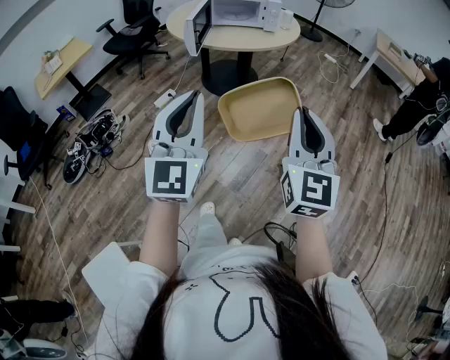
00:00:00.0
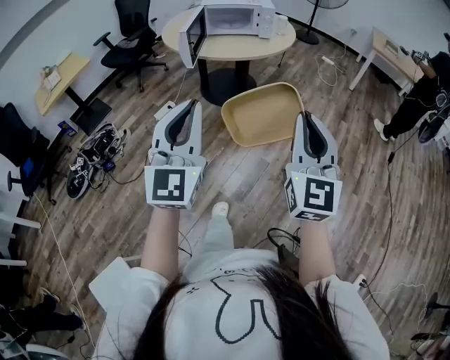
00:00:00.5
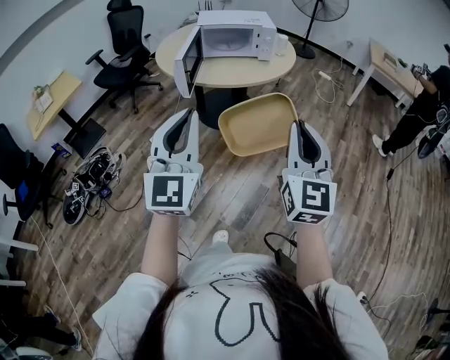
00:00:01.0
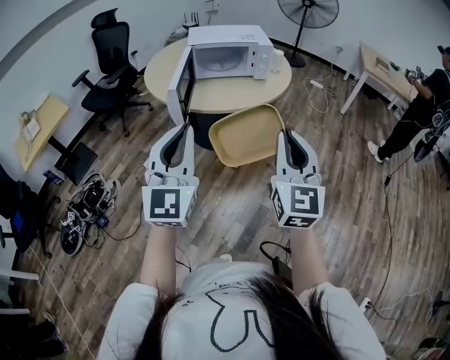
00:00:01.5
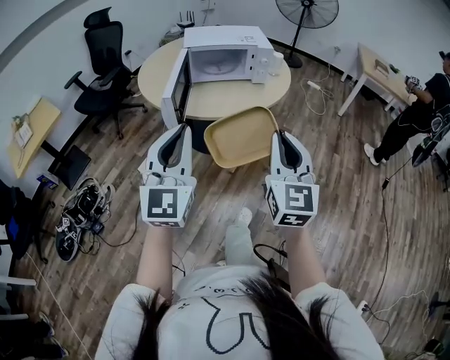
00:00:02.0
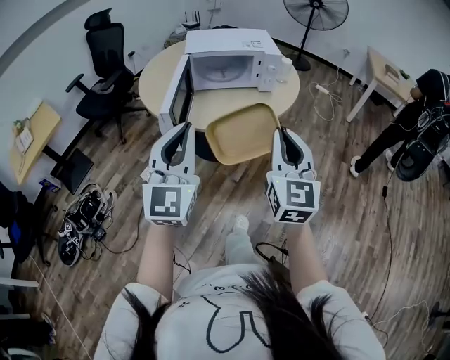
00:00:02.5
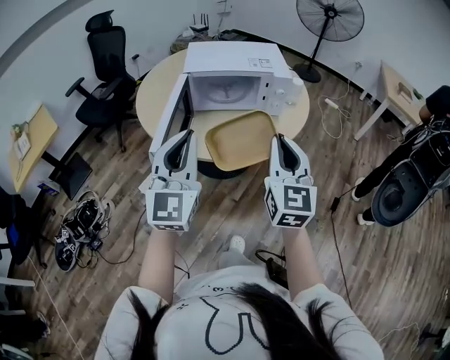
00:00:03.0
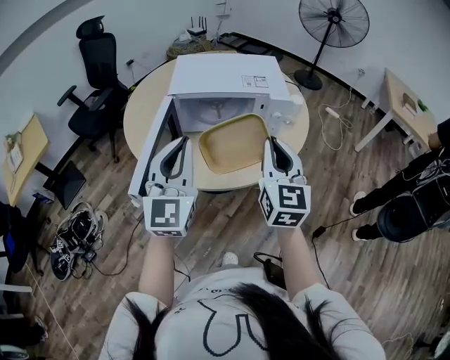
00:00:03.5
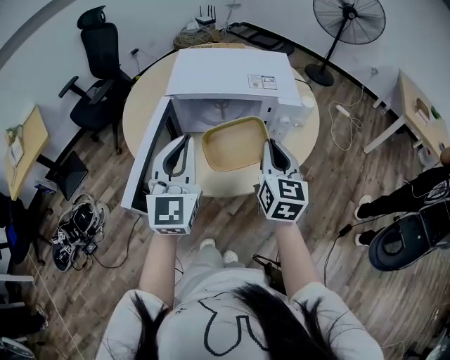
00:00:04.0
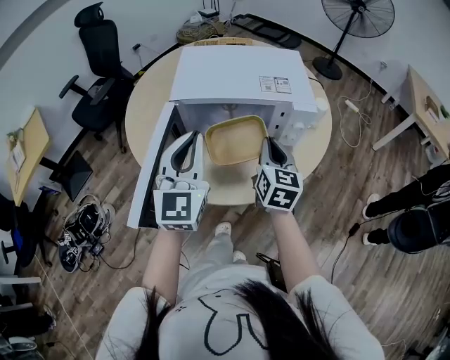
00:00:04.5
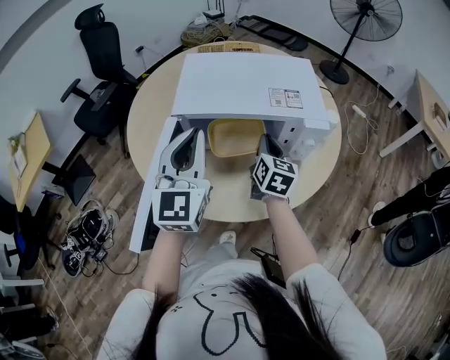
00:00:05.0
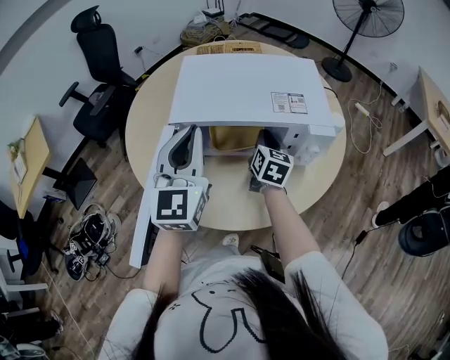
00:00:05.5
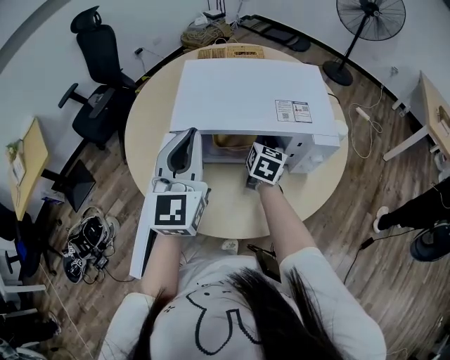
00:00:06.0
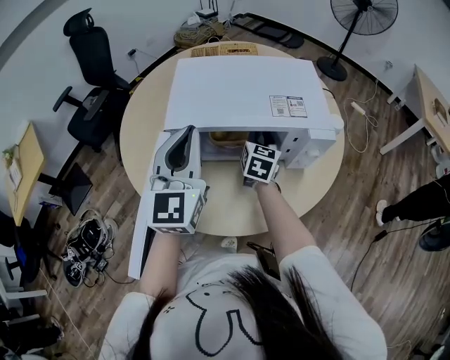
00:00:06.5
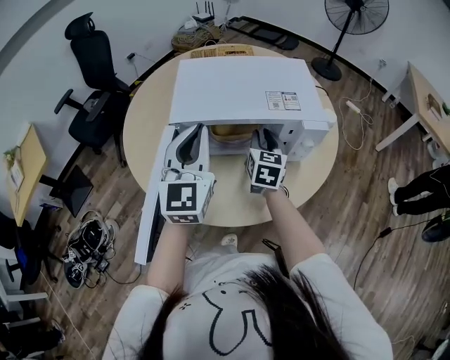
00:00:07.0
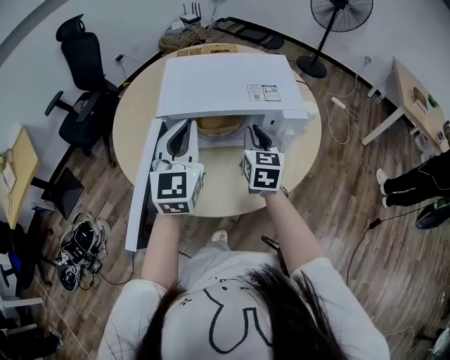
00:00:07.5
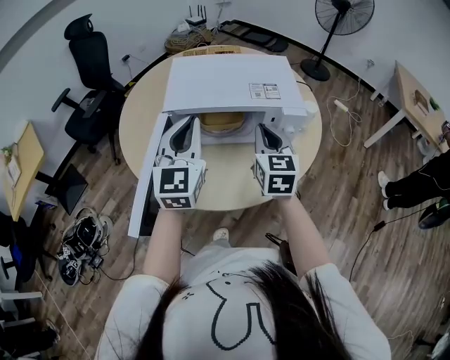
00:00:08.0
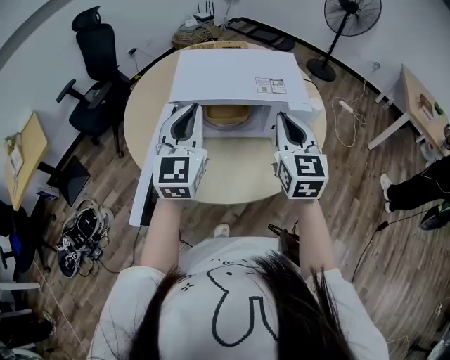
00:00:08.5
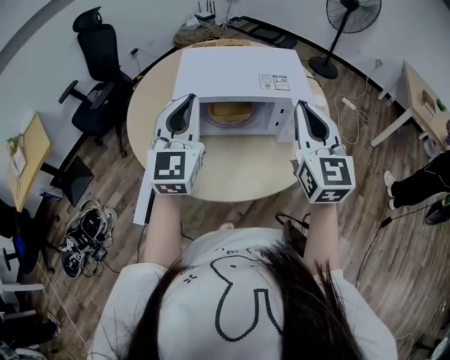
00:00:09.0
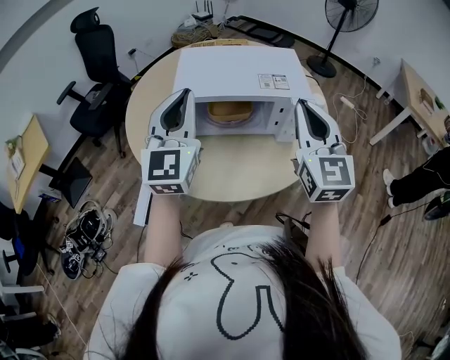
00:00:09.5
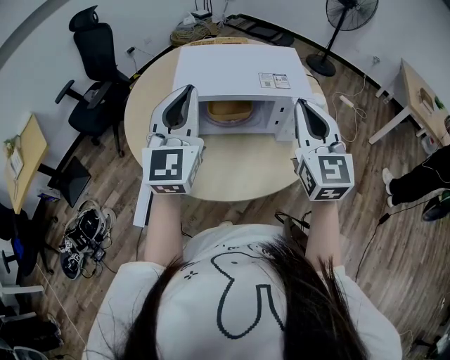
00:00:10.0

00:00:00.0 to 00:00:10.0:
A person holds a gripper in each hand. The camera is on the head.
00:00:00.0 to 00:00:02.0: The grippers both shift forward by approximately 35 cm.
00:00:02.0 to 00:00:04.0: The pair of grippers is taken forward, some 40 cm. The right gripper changes its angle by approximately 20 degrees.
00:00:04.0 to 00:00:06.0: The left gripper heads forward, covering some 20 cm; the right gripper goes some 30 cm forward and downward, and rotates approximately 20 degrees.
00:00:06.0 to 00:00:08.0: The right gripper goes roughly 20 cm backward and upward, and changes its angle by approximately 20 degrees; the left gripper heads backward, covering roughly 5 cm.
00:00:08.0 to 00:00:10.0: The left gripper heads upward, covering approximately 5 cm; the right gripper is displaced upward and backward by approximately 15 cm, and changes its angle by approximately 20 degrees.

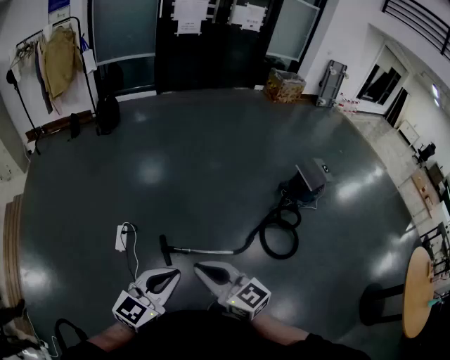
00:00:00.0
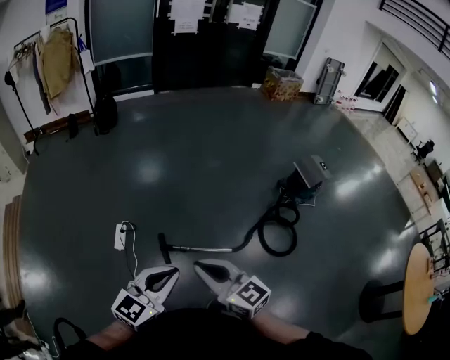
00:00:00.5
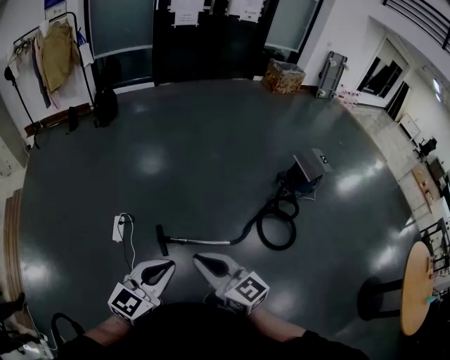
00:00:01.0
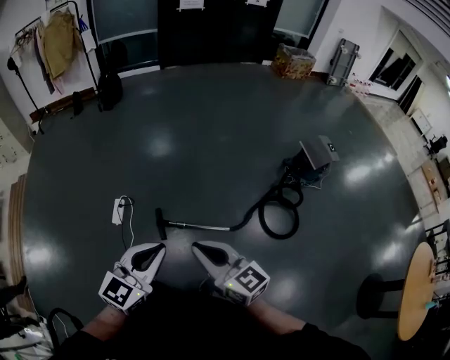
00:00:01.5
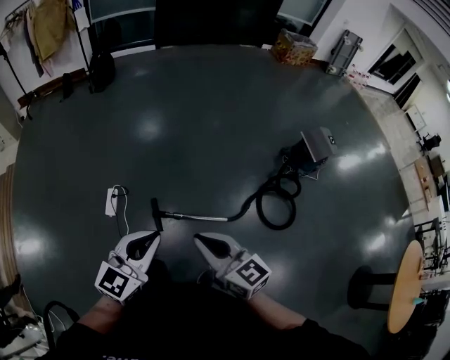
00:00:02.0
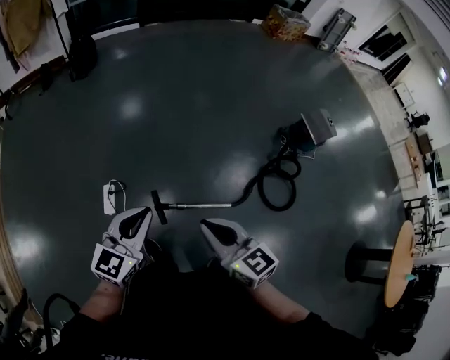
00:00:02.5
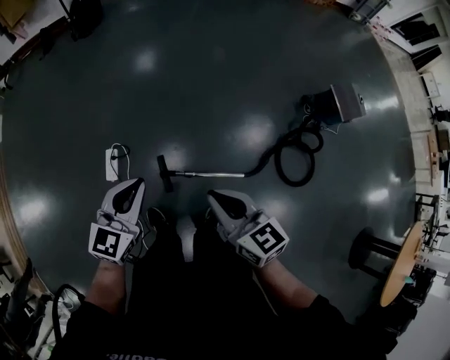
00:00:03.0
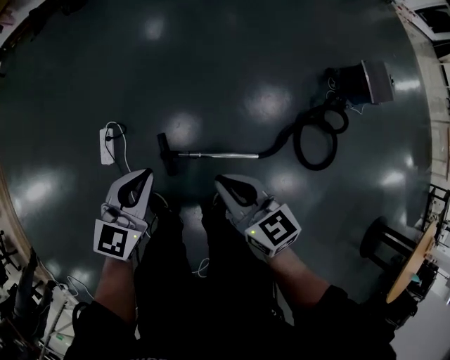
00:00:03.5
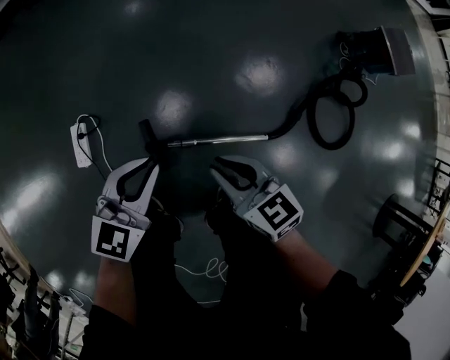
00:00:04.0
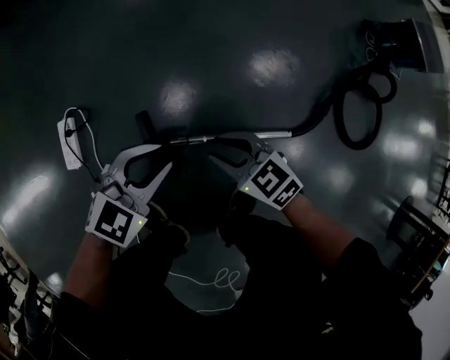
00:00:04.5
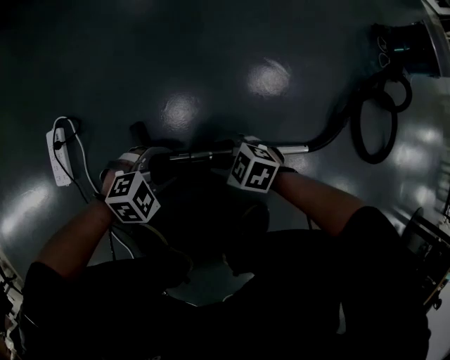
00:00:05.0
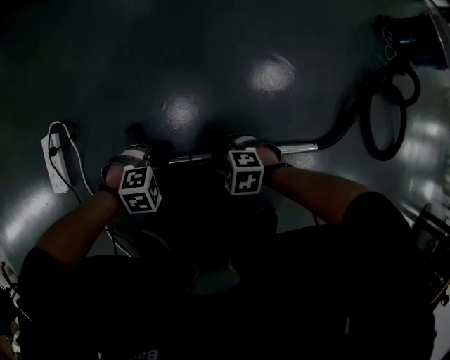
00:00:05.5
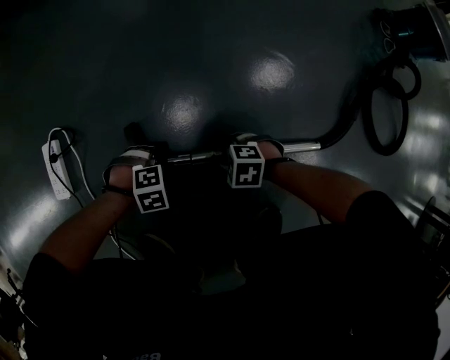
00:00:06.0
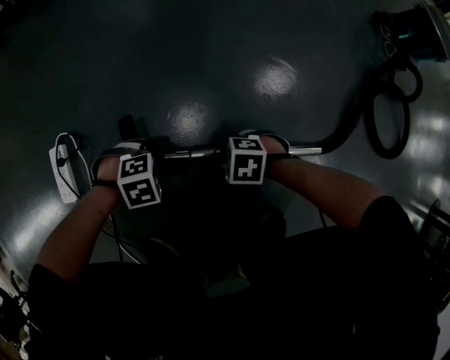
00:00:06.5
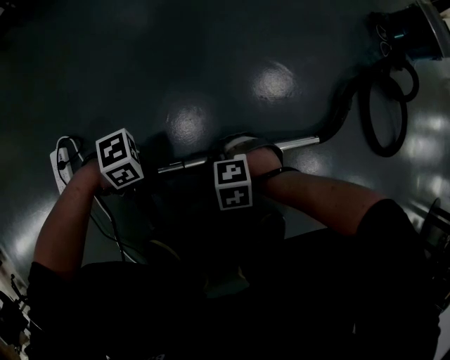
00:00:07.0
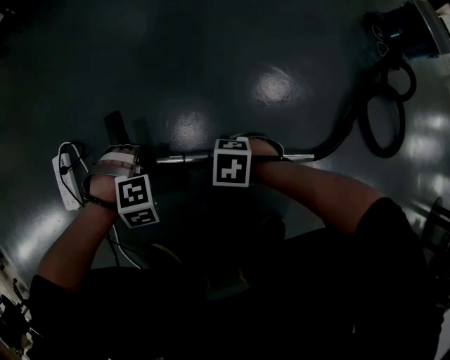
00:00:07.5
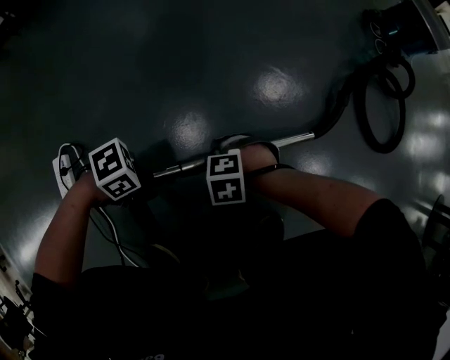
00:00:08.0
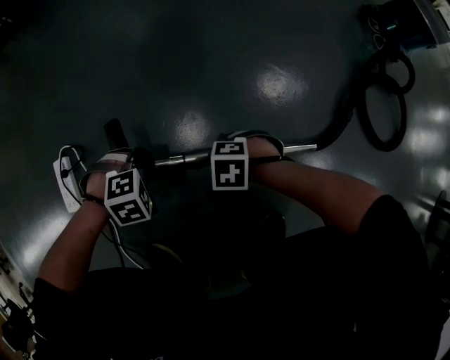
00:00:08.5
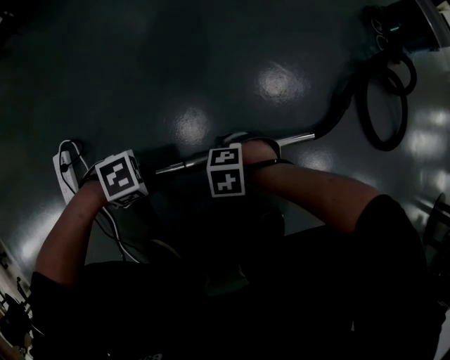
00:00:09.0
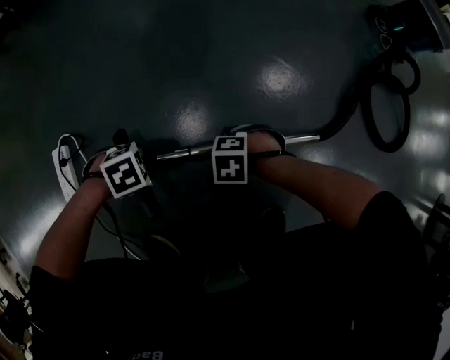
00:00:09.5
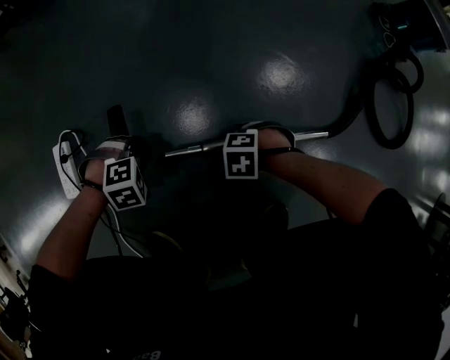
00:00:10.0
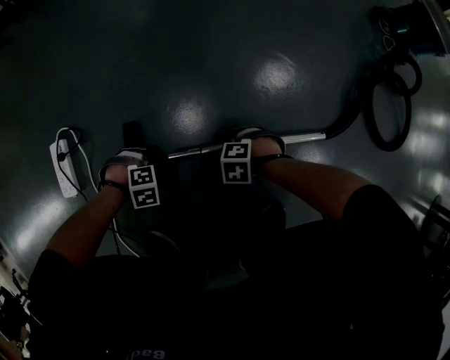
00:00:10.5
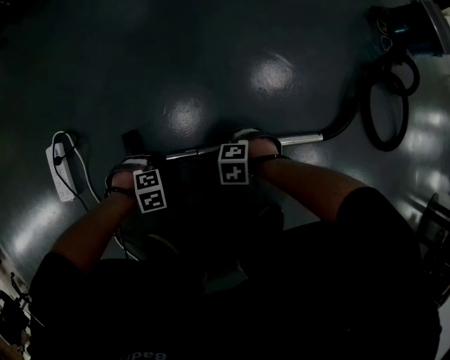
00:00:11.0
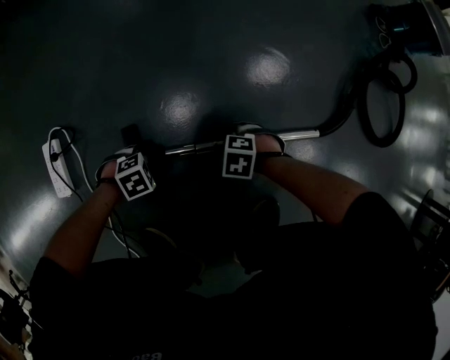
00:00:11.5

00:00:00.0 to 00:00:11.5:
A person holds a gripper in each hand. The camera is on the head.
00:00:00.0 to 00:00:02.0: The right gripper ends up about 5 cm from where it was, while the left gripper shifts roughly 5 cm forward.
00:00:02.0 to 00:00:04.0: Both grippers move downward and forward, approximately 50 cm. The right gripper rotates roughly 20 degrees.
00:00:04.0 to 00:00:06.0: Both grippers move downward, roughly 50 cm. The right gripper angles its fingers downward, by some 30 degrees; the left gripper tips its fingers downward by about 60 degrees, and opens its fingers.
00:00:06.0 to 00:00:07.5: The two grippers go some 10 cm upward.
00:00:07.5 to 00:00:09.5: The left gripper rotates about 40 degrees.
00:00:09.5 to 00:00:11.5: The right gripper opens. Meanwhile the left gripper goes roughly 10 cm downward, and opens up.

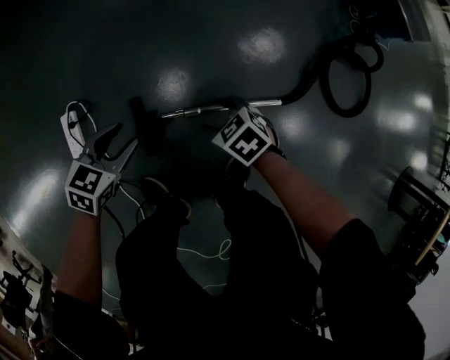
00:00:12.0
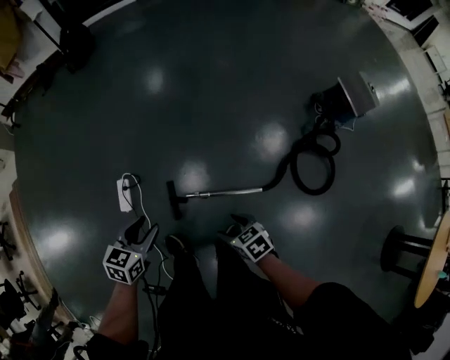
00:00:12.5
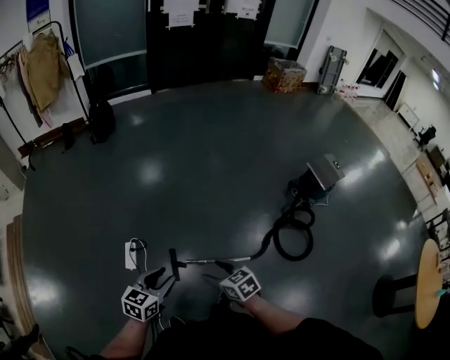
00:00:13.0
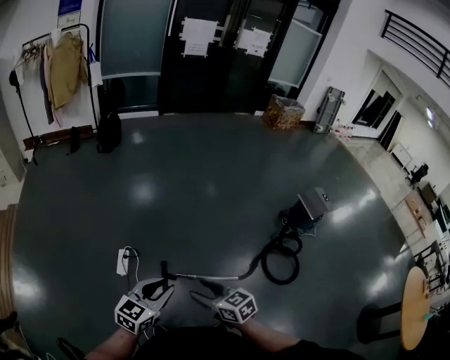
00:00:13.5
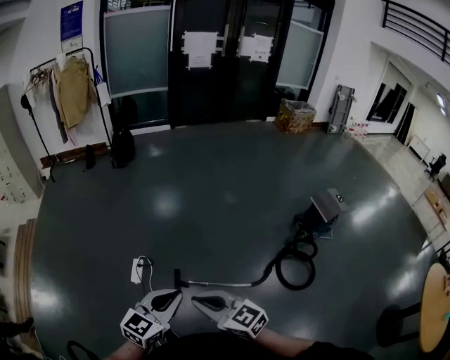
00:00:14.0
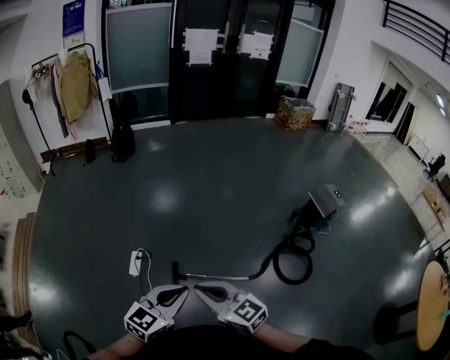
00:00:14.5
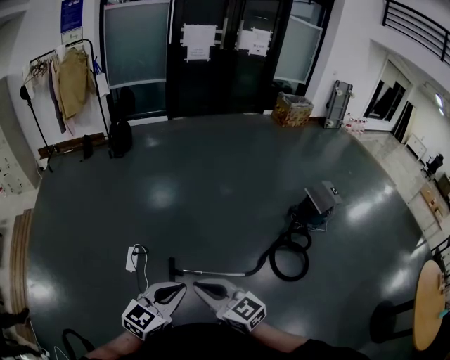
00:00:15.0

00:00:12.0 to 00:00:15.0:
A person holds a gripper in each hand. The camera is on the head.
00:00:12.0 to 00:00:13.5: The left gripper heads upward and backward, covering some 60 cm, tilts its fingers roughly 30 degrees upward, and closes. Meanwhile the right gripper goes some 60 cm upward, and points its fingers approximately 30 degrees further upward.
00:00:13.5 to 00:00:15.0: The left gripper is displaced to the right, backward and upward by about 15 cm, and closes; the right gripper shifts about 15 cm upward and backward, rotates approximately 20 degrees, and closes.

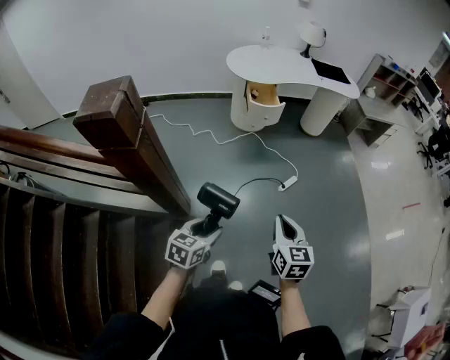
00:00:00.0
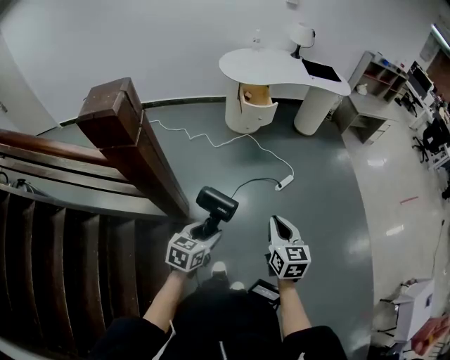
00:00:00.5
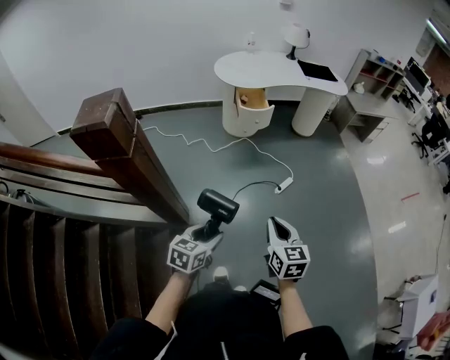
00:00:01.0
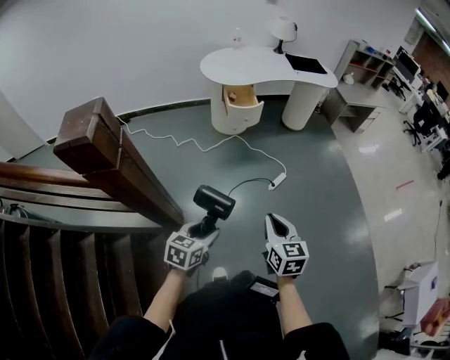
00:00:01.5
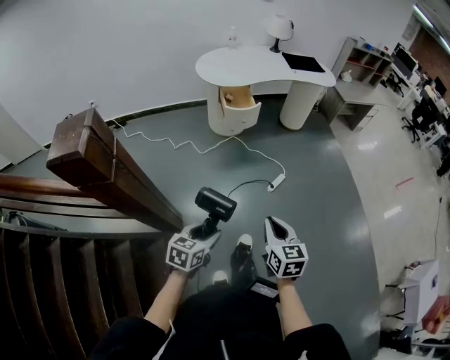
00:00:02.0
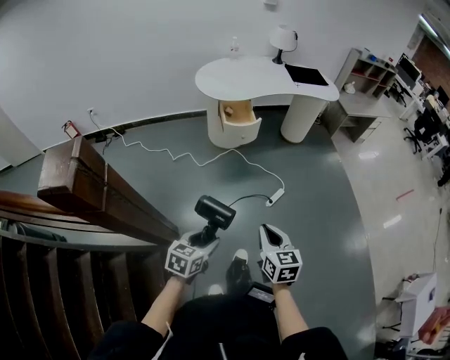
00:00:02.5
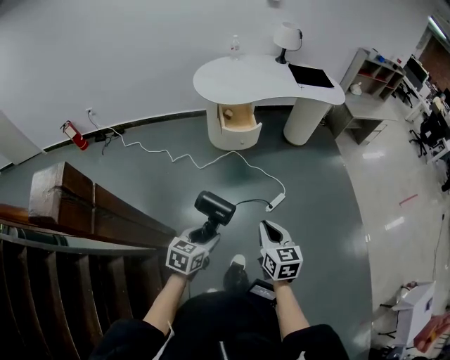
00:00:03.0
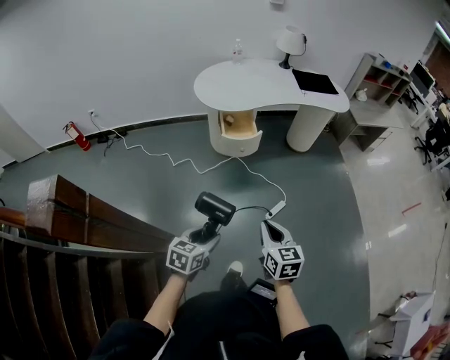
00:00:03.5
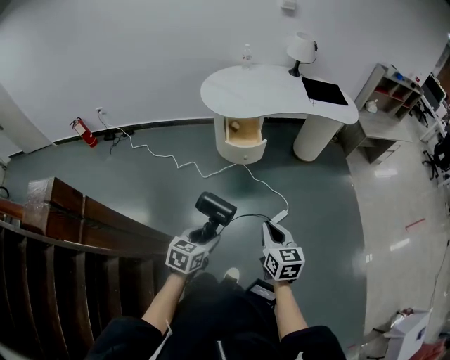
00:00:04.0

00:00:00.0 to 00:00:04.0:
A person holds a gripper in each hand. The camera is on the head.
00:00:00.0 to 00:00:02.0: The left gripper is displaced forward by roughly 5 cm.
00:00:02.0 to 00:00:04.0: Both grippers travel together forward, about 25 cm.
